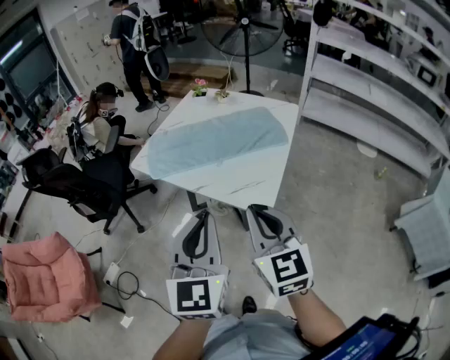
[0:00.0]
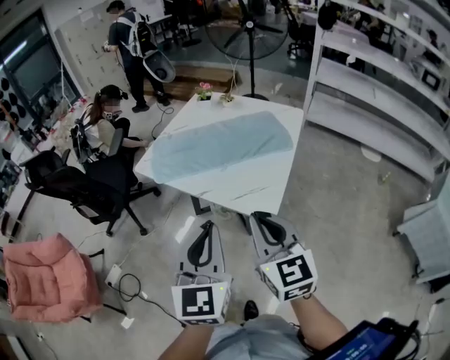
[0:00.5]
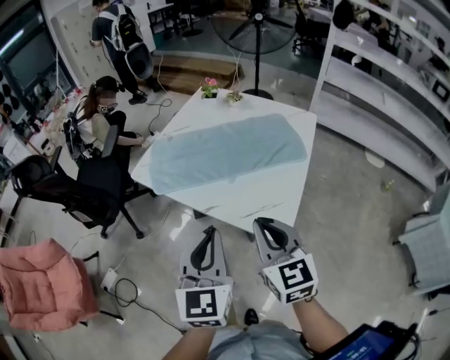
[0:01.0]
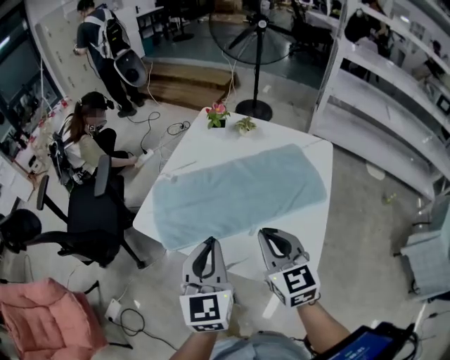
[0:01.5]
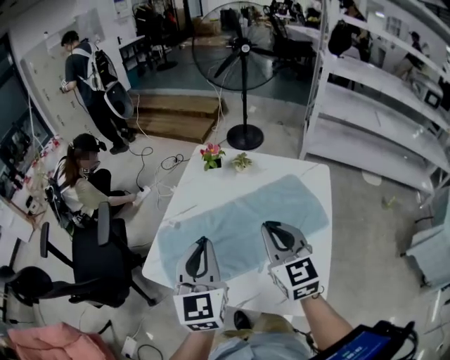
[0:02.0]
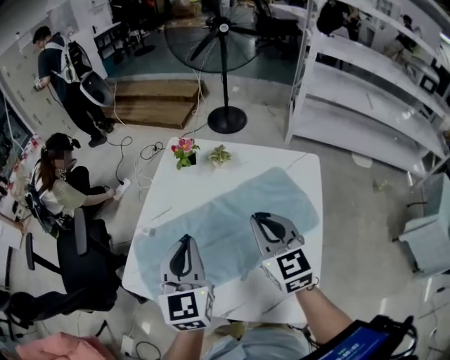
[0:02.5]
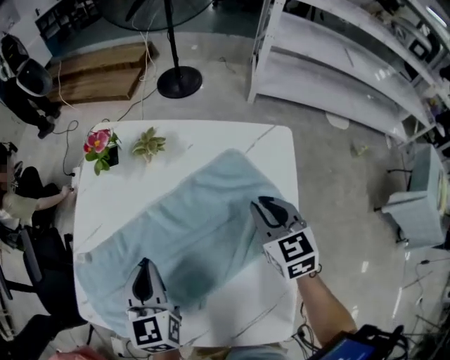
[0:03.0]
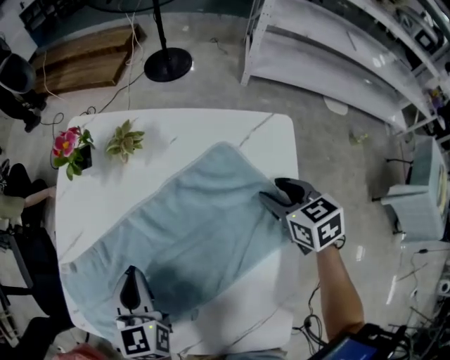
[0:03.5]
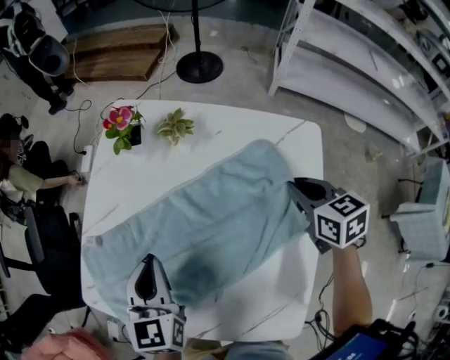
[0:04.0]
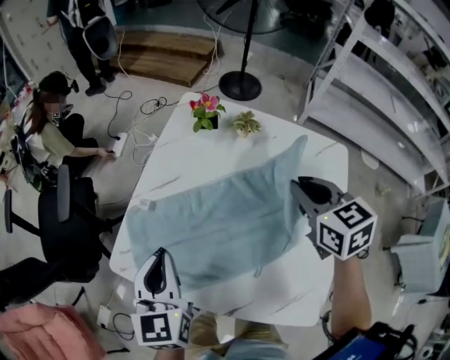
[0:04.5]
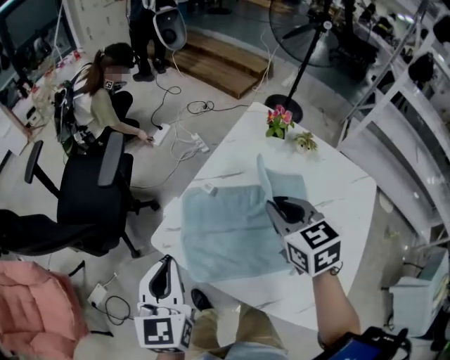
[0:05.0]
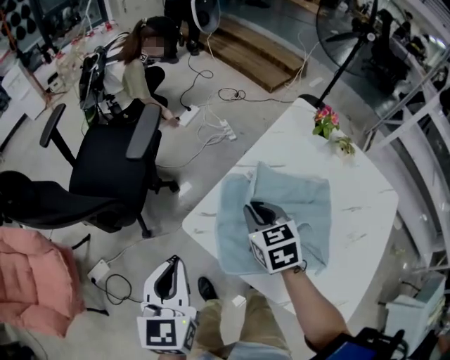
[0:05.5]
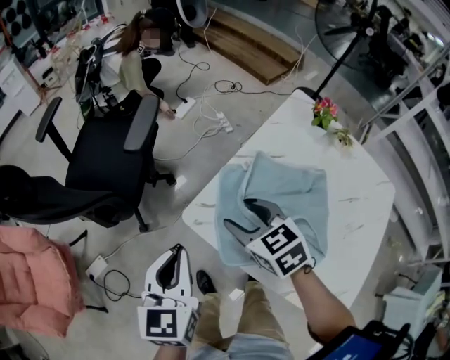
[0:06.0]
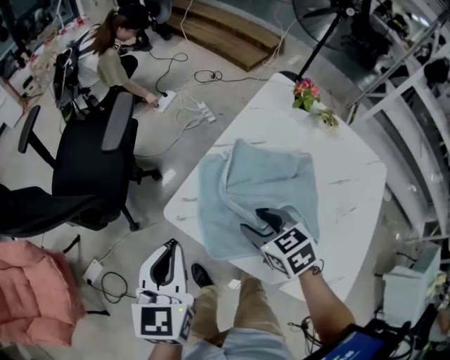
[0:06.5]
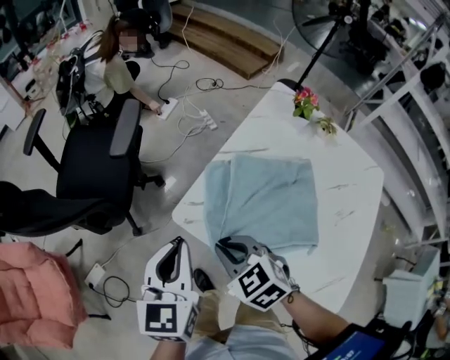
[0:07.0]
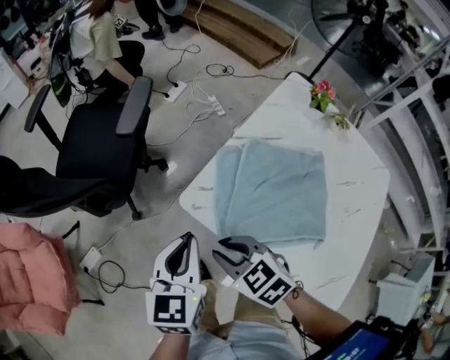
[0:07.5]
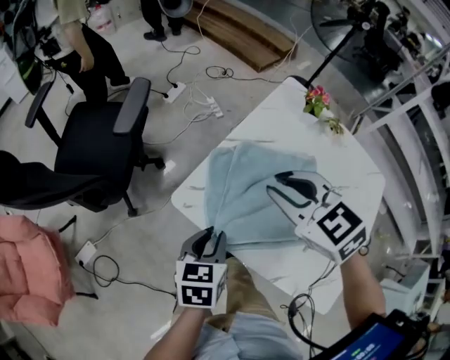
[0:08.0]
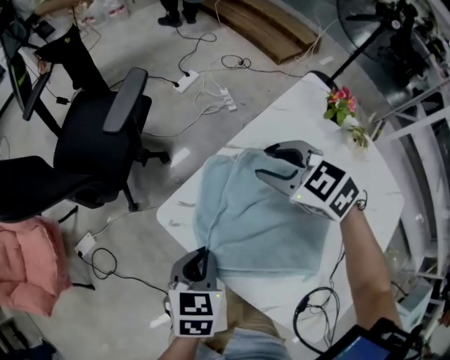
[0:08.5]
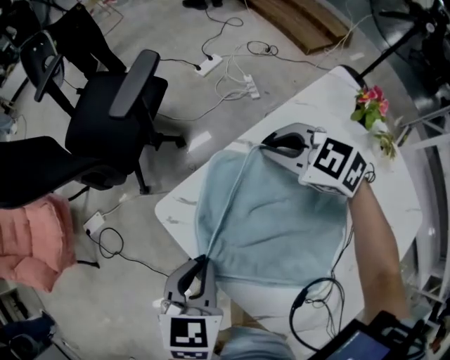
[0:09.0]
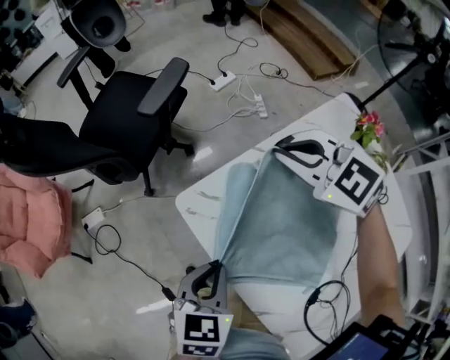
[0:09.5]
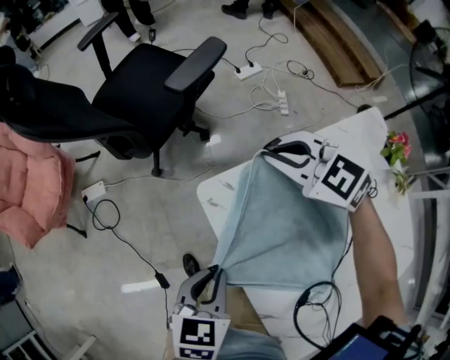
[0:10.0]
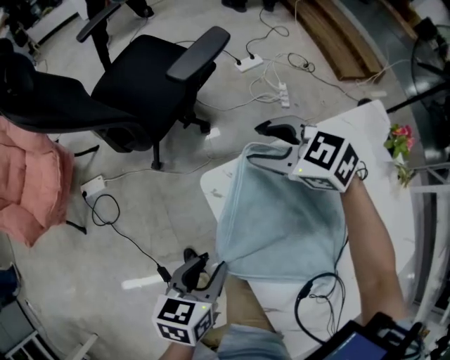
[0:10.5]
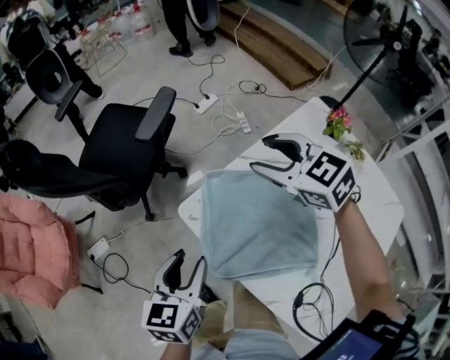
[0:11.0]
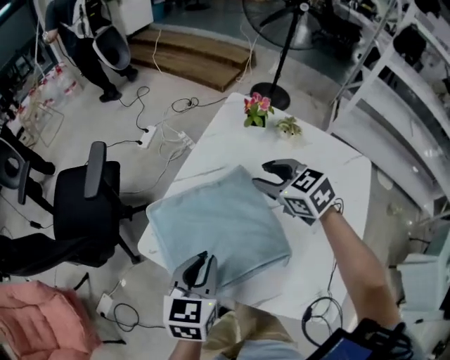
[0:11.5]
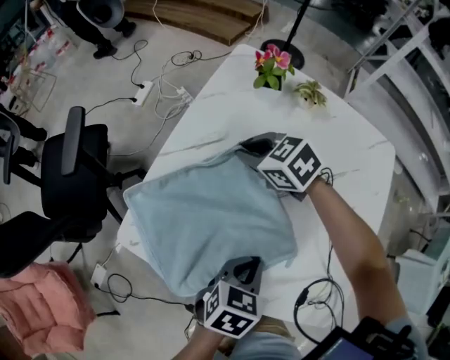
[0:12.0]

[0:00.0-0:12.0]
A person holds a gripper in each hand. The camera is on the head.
0:00.0 to 0:02.0: The grippers both shift forward by about 40 cm.
0:02.0 to 0:04.0: The left gripper shifts roughly 20 cm downward and forward, and turns by about 20 degrees. Meanwhile the right gripper is displaced to the right, downward and forward by about 35 cm, rotates approximately 30 degrees, and opens, then closes once more.
0:04.0 to 0:06.0: The right gripper moves some 10 cm upward and comes back, changes its angle by about 50 degrees, and opens up; the left gripper moves some 40 cm, and rotates about 20 degrees.
0:06.0 to 0:08.0: The right gripper moves upward and to the right, roughly 15 cm, and closes up, while the left gripper heads to the right and downward, covering roughly 15 cm, and swivels approximately 20 degrees.
0:08.0 to 0:10.0: The left gripper changes place by some 5 cm, and changes its angle by approximately 20 degrees. Meanwhile the right gripper swings up and down, some 15 cm each way, with 2 reversals, and rotates roughly 50 degrees.
0:10.0 to 0:12.0: The left gripper moves approximately 5 cm upward and comes back, turns by some 60 degrees, and opens, then closes again, while the right gripper moves some 25 cm, rotates around the line of its fingers by about 50 degrees, clockwise from behind, and opens and closes again.

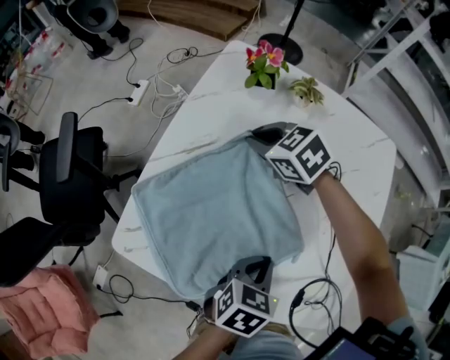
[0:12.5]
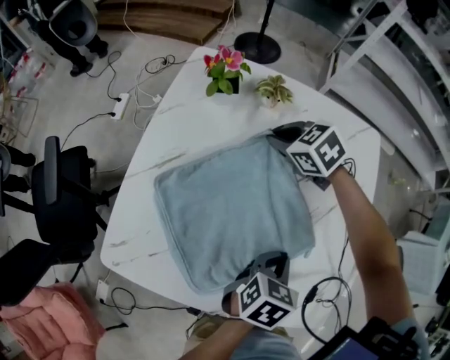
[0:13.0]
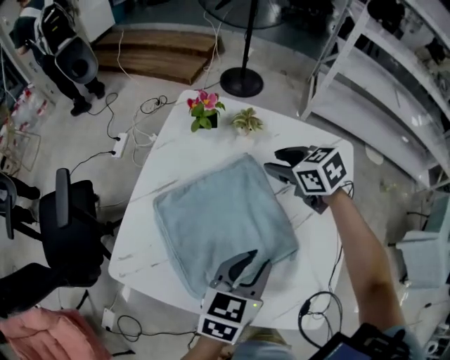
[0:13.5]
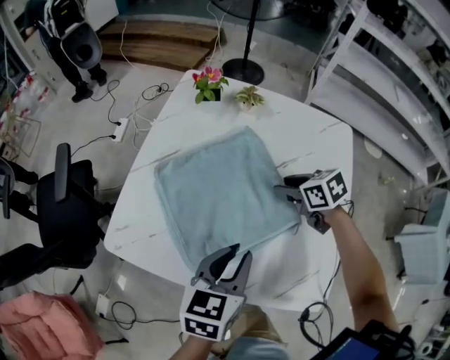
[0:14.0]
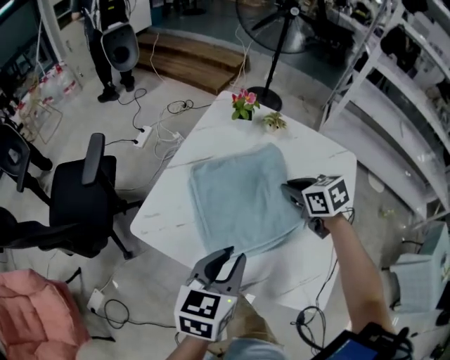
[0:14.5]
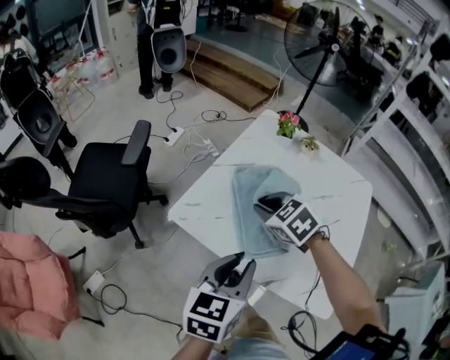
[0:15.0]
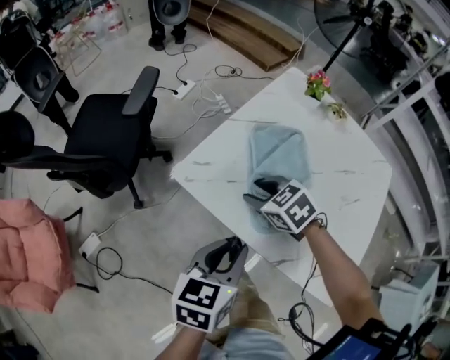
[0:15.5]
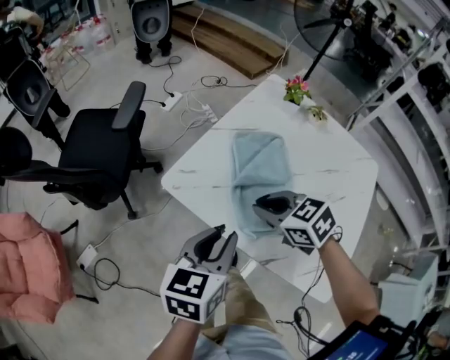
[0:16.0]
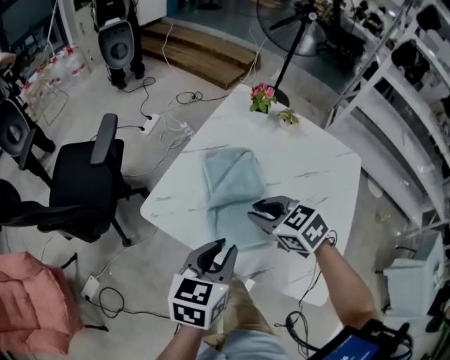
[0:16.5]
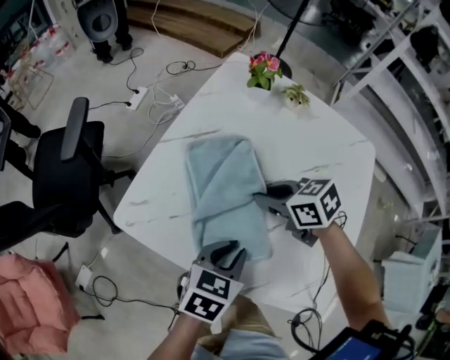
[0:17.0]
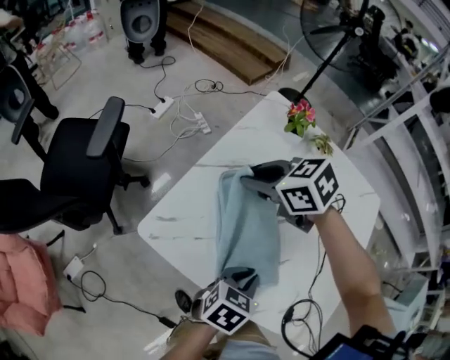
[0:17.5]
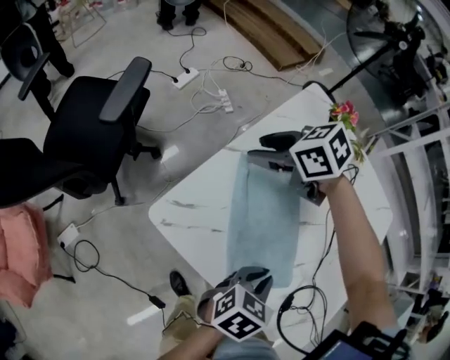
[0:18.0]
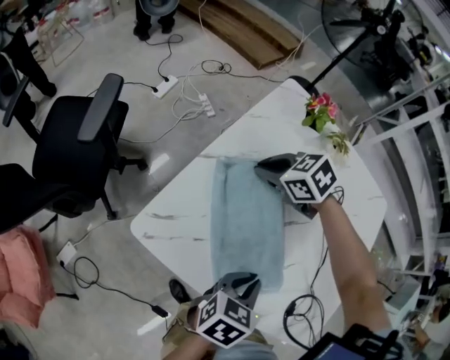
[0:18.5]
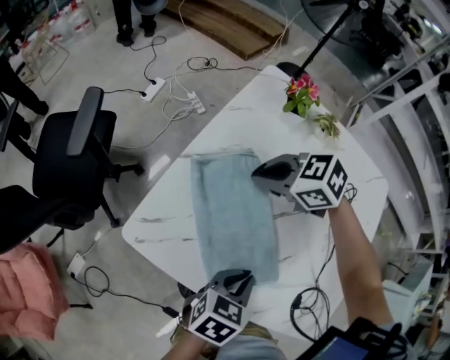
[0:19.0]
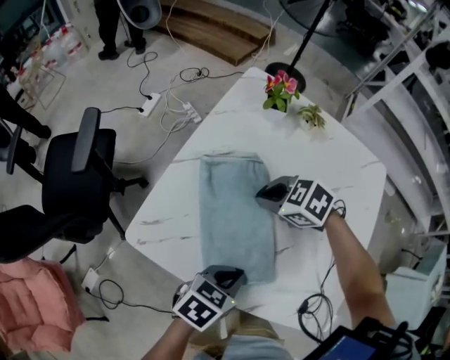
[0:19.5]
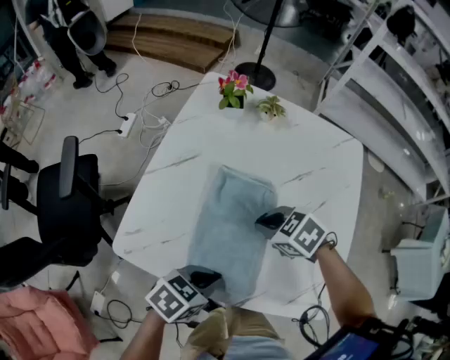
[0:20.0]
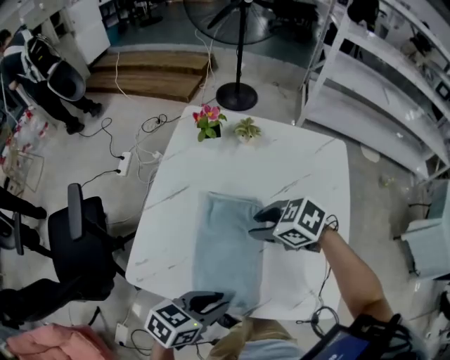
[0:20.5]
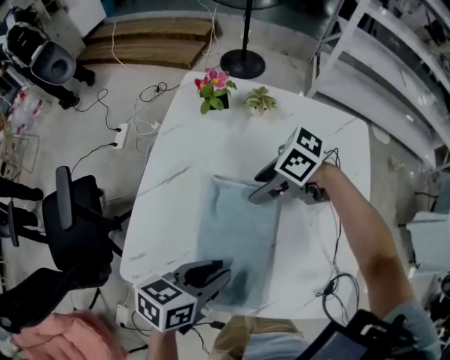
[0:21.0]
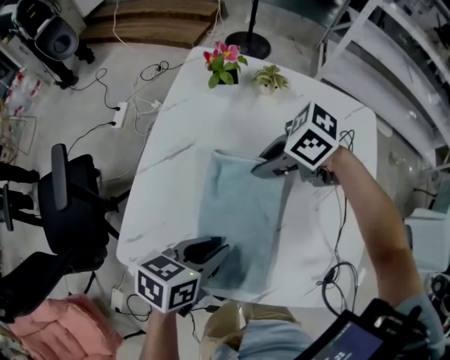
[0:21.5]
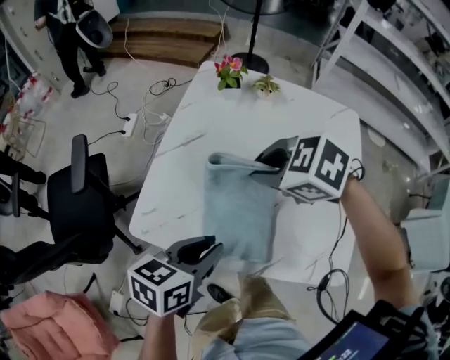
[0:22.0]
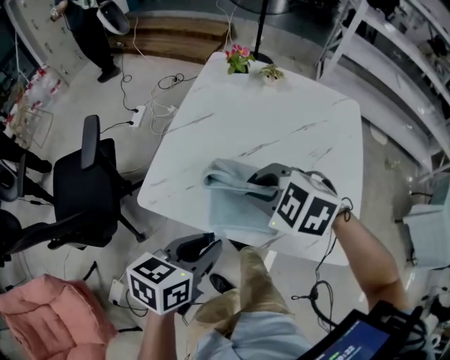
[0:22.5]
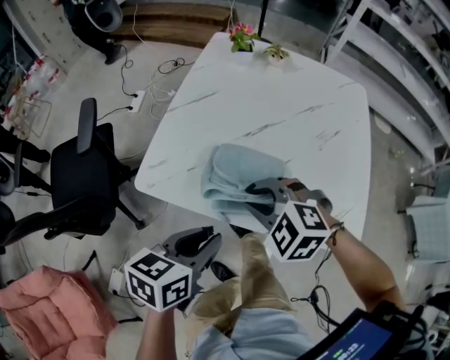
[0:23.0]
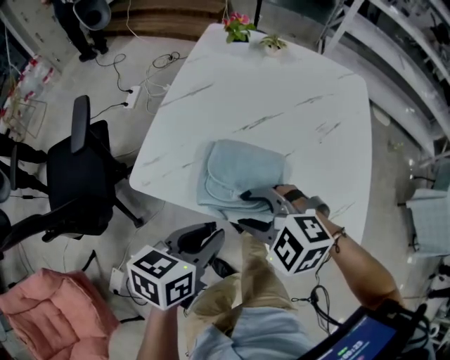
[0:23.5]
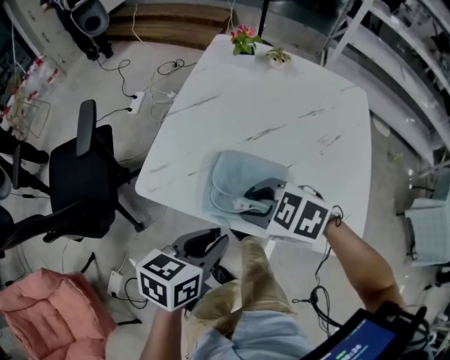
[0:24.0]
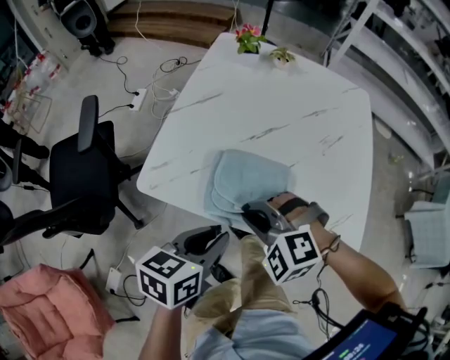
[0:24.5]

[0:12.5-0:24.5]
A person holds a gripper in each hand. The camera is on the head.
0:12.5 to 0:14.5: The right gripper moves backward, to the right and upward, roughly 20 cm, turns by approximately 20 degrees, and opens and closes again. The left gripper goes approximately 15 cm upward and to the left, and changes its angle by some 30 degrees.
0:14.5 to 0:16.5: The left gripper moves to the left, roughly 5 cm. Meanwhile the right gripper heads to the left and backward, covering some 20 cm, and turns by roughly 20 degrees.
0:16.5 to 0:18.5: The right gripper goes up and down, some 10 cm each way, reversing 2 times, and opens, then closes again. Meanwhile the left gripper shifts some 10 cm downward, and swivels some 20 degrees.
0:18.5 to 0:20.5: The right gripper changes place by roughly 20 cm, and opens. The left gripper shifts by about 10 cm, and swivels some 20 degrees.
0:20.5 to 0:22.5: The left gripper shifts by some 10 cm, and turns by about 20 degrees. The right gripper ends up about 15 cm from where it was, turns by approximately 30 degrees, and opens, then closes again.
0:22.5 to 0:24.5: The right gripper moves downward, approximately 5 cm, turns by roughly 30 degrees, and opens, then closes once more.

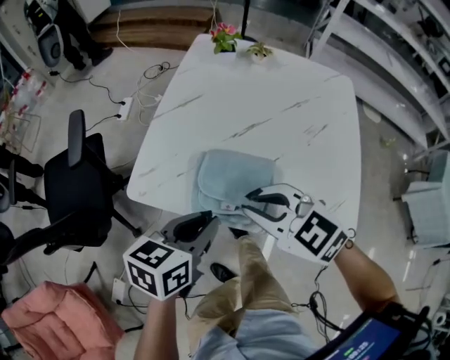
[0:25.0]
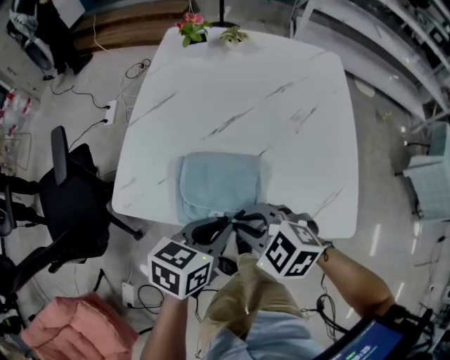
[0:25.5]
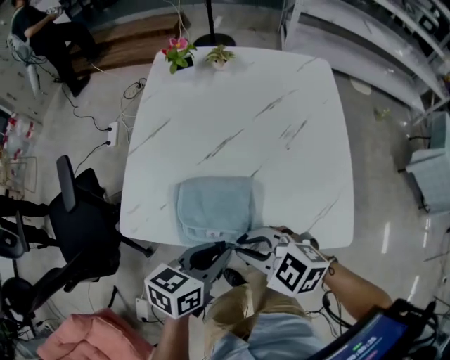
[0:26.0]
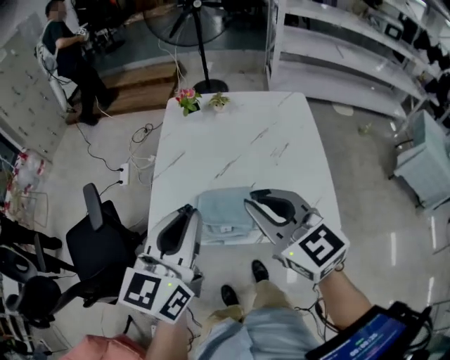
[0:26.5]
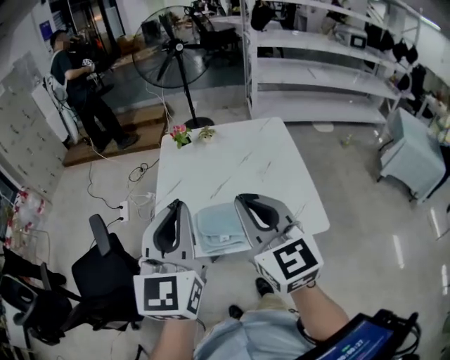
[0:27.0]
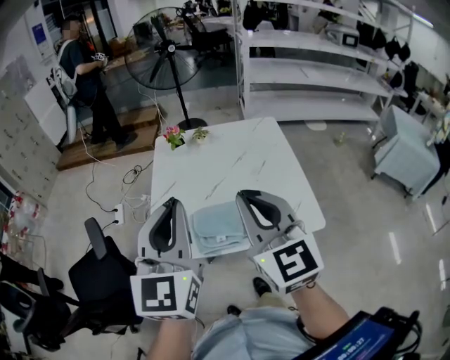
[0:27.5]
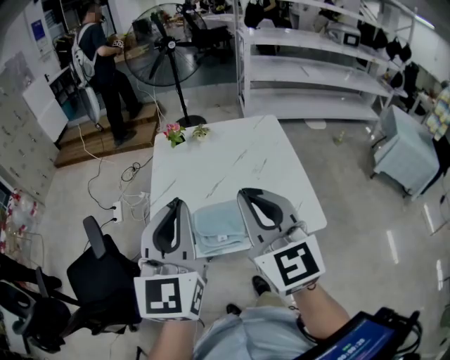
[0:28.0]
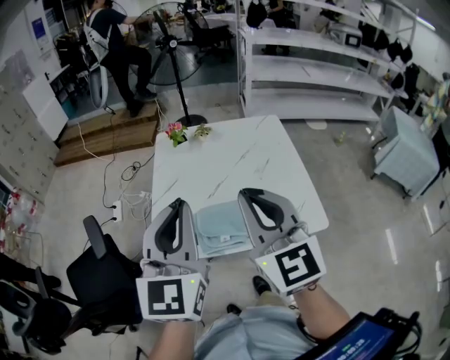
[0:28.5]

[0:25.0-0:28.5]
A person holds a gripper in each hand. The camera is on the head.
0:25.0 to 0:27.0: Both grippers travel together upward, some 30 cm. The left gripper points its fingers about 30 degrees further upward; the right gripper tilts its fingers roughly 30 degrees upward.
0:27.0 to 0:28.5: The grippers move only a little.
